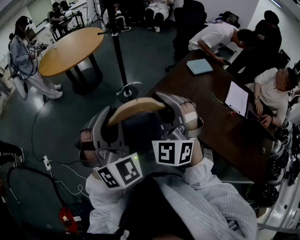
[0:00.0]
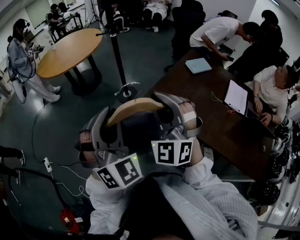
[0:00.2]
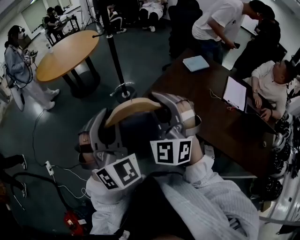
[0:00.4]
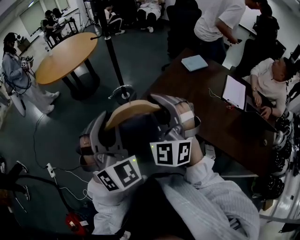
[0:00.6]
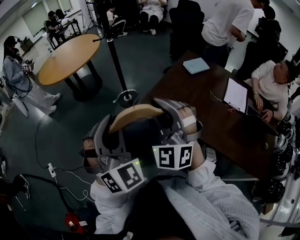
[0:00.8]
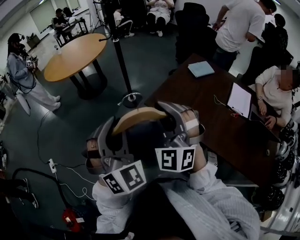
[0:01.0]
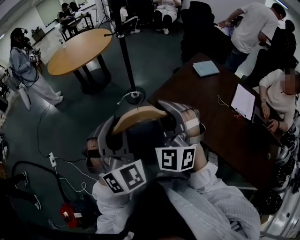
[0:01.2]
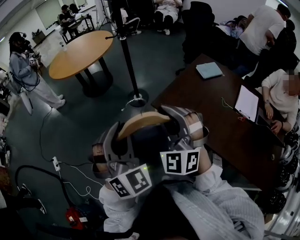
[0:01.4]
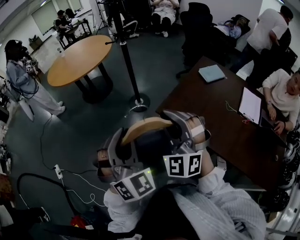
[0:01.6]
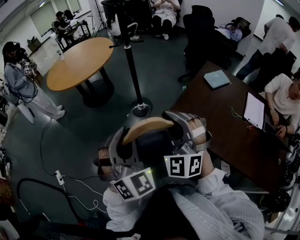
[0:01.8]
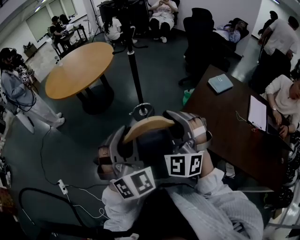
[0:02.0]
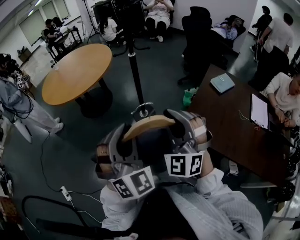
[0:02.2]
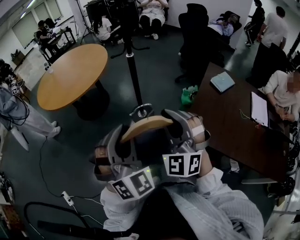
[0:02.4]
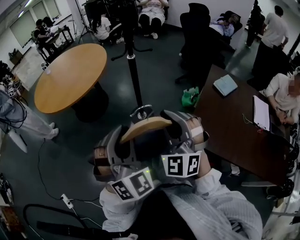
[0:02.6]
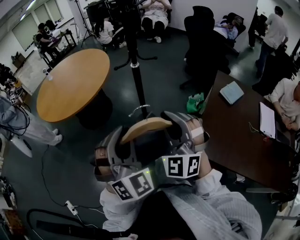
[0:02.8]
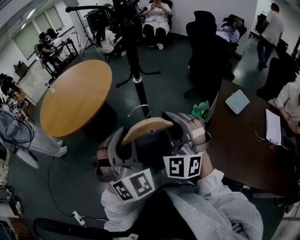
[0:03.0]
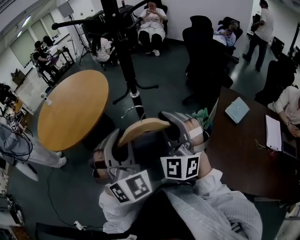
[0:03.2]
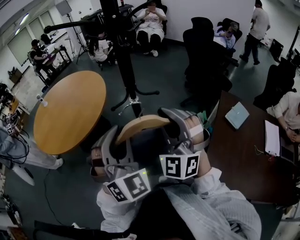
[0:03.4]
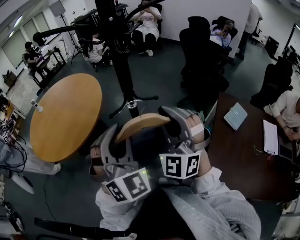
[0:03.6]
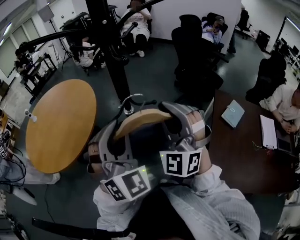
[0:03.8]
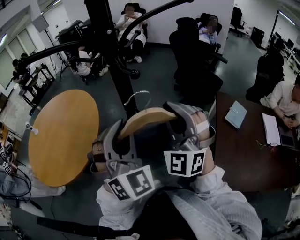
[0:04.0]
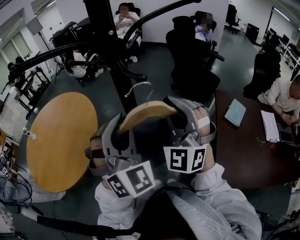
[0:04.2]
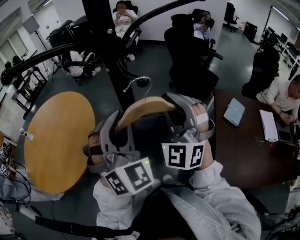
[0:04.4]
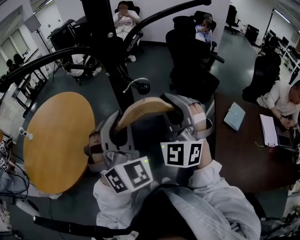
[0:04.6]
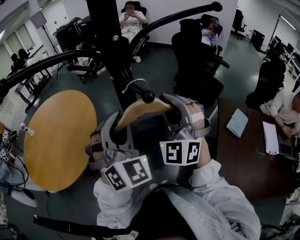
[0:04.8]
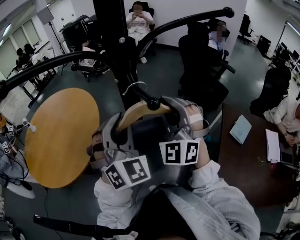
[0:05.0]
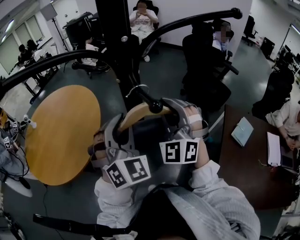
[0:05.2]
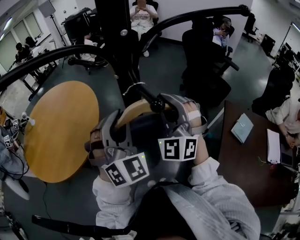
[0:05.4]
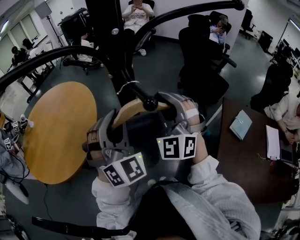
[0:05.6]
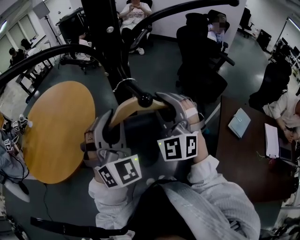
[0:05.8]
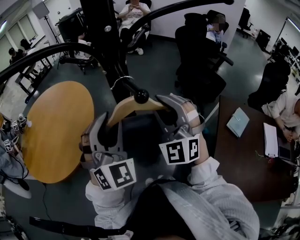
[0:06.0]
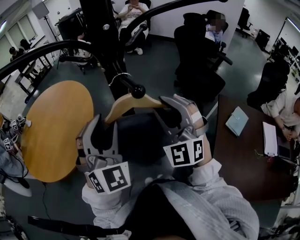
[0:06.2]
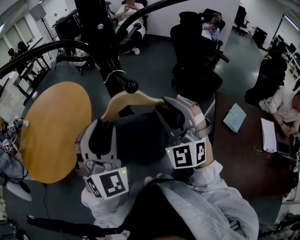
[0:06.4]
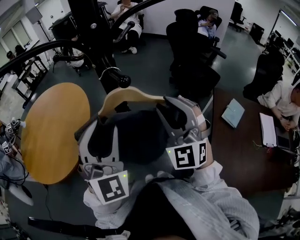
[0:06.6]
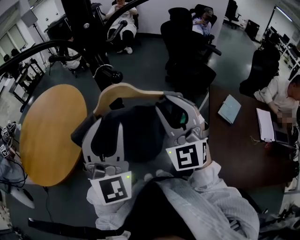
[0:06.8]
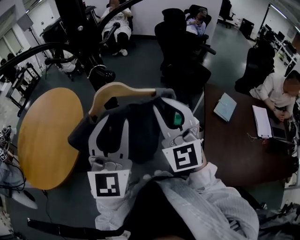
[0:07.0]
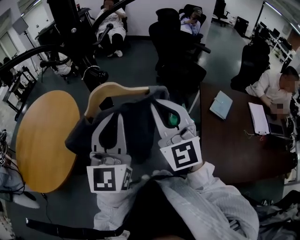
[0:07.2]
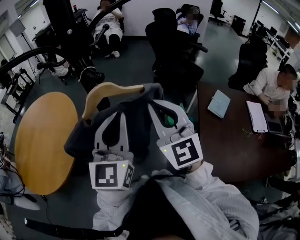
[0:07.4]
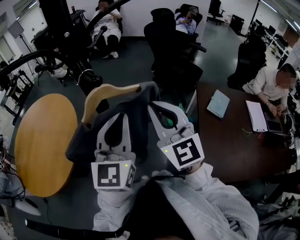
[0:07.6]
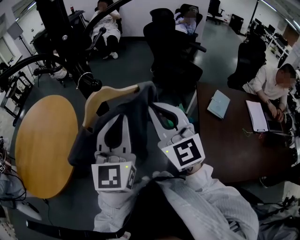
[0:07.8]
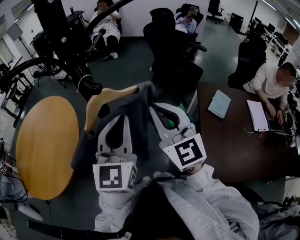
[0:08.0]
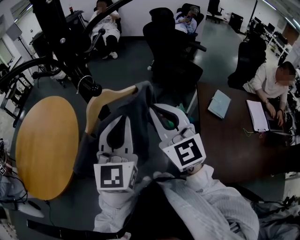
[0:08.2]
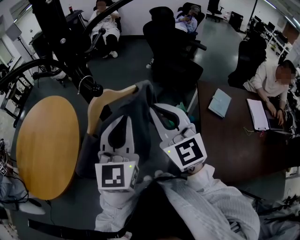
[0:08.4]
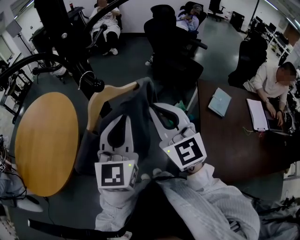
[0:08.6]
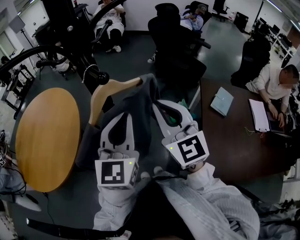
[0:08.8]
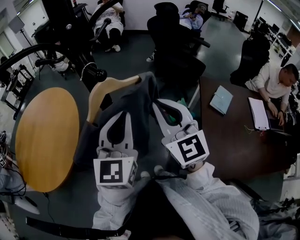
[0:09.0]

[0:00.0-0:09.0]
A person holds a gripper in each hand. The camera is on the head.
0.0 to 1.6 s: The right gripper ends up roughly 5 cm from where it was, while the left gripper shifts by approximately 5 cm.
1.6 to 3.0 s: The pair of grippers is taken forward, roughly 50 cm.
3.0 to 4.4 s: Both grippers travel together forward, roughly 30 cm.
4.4 to 6.0 s: Both grippers travel together forward, some 5 cm.
6.0 to 7.6 s: The left gripper travels to the right and backward by some 10 cm, rolls counterclockwise, seen from behind, by approximately 50 degrees, and closes up. The right gripper is displaced backward and to the right by about 10 cm, and changes its angle by roughly 40 degrees.
7.6 to 9.0 s: There are only small adjustments of the grippers.

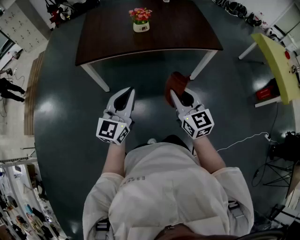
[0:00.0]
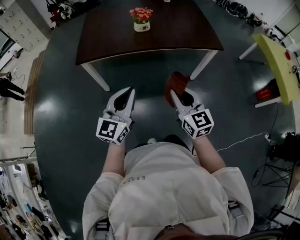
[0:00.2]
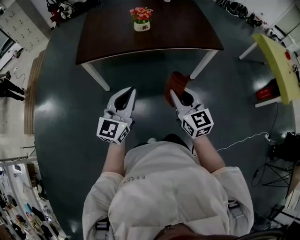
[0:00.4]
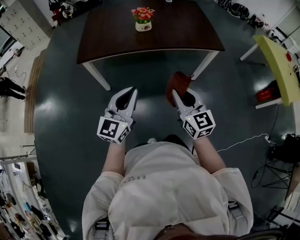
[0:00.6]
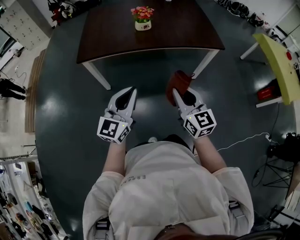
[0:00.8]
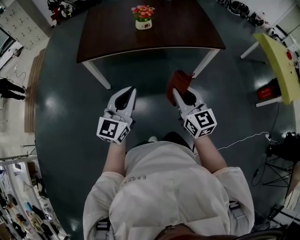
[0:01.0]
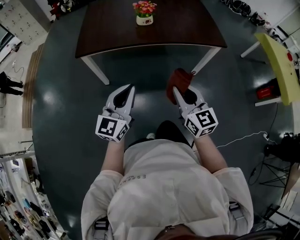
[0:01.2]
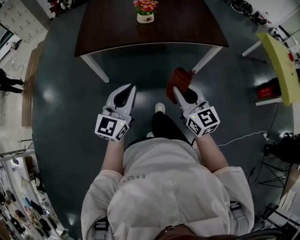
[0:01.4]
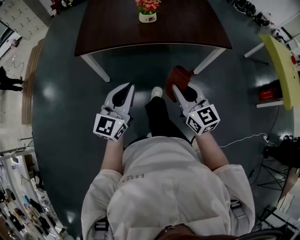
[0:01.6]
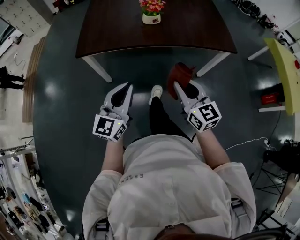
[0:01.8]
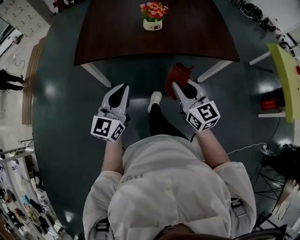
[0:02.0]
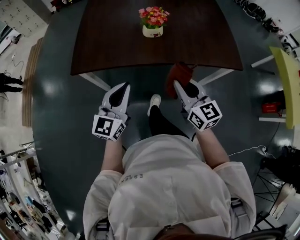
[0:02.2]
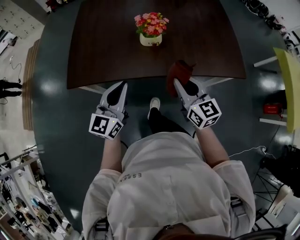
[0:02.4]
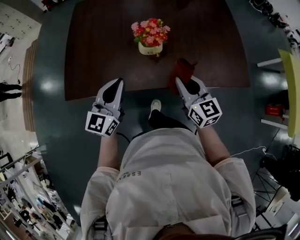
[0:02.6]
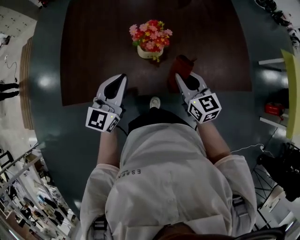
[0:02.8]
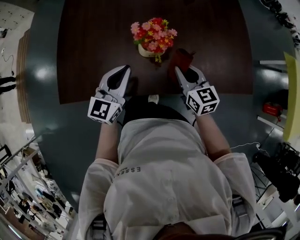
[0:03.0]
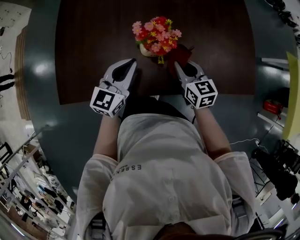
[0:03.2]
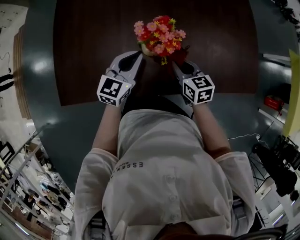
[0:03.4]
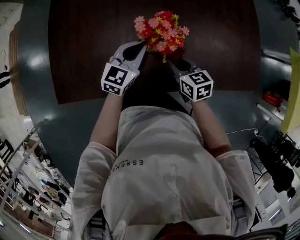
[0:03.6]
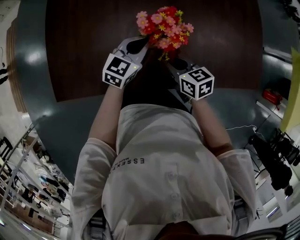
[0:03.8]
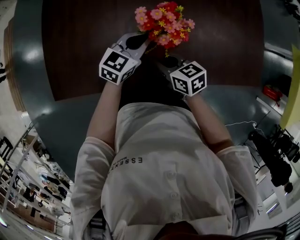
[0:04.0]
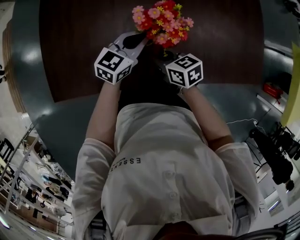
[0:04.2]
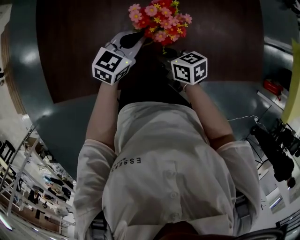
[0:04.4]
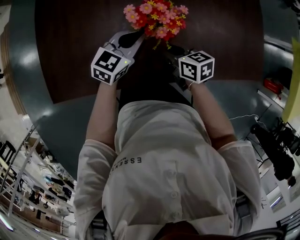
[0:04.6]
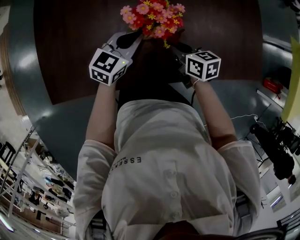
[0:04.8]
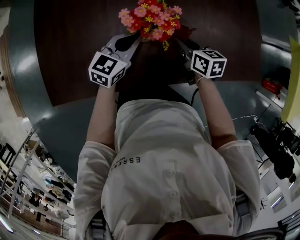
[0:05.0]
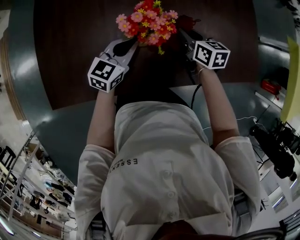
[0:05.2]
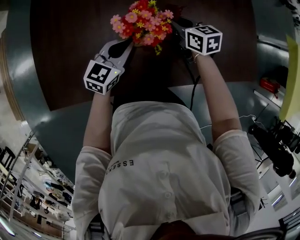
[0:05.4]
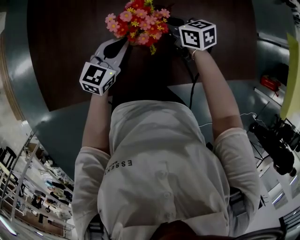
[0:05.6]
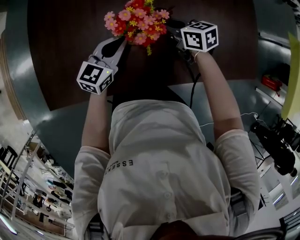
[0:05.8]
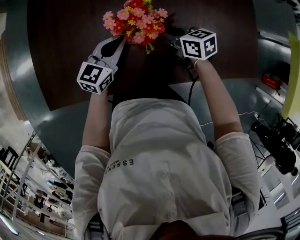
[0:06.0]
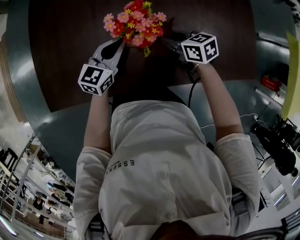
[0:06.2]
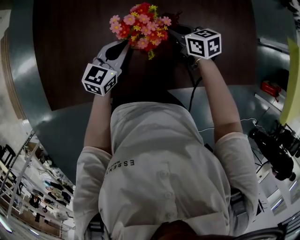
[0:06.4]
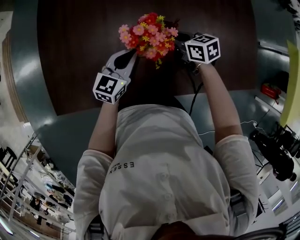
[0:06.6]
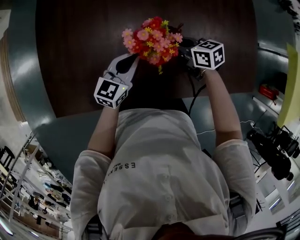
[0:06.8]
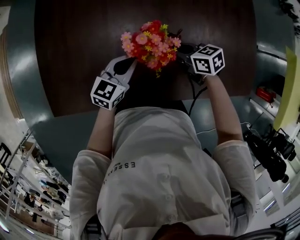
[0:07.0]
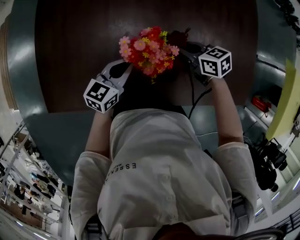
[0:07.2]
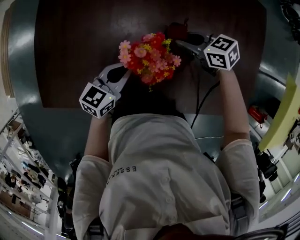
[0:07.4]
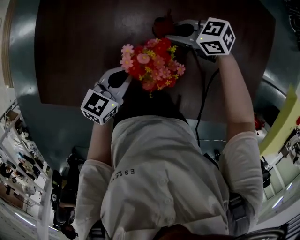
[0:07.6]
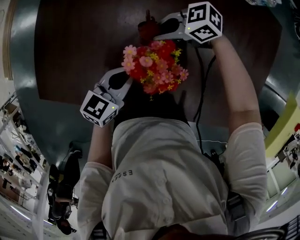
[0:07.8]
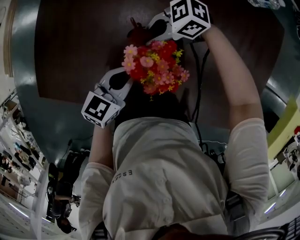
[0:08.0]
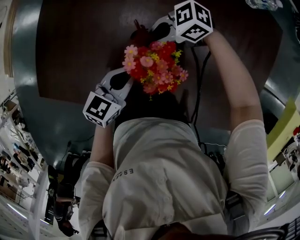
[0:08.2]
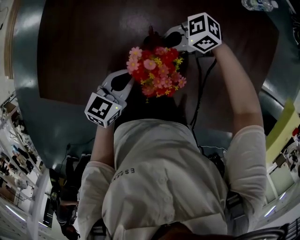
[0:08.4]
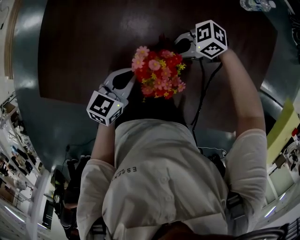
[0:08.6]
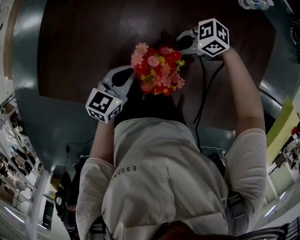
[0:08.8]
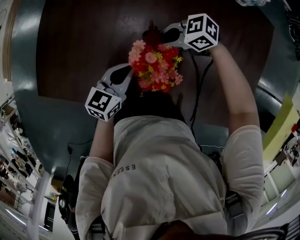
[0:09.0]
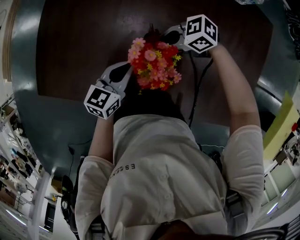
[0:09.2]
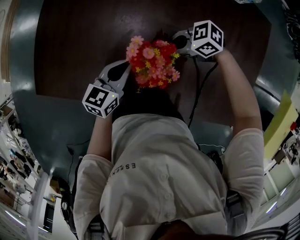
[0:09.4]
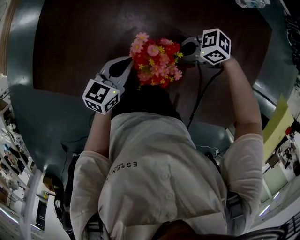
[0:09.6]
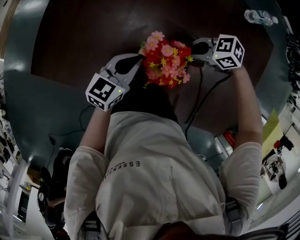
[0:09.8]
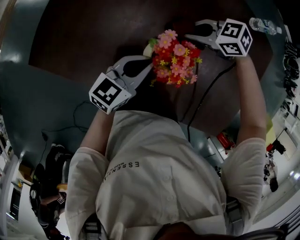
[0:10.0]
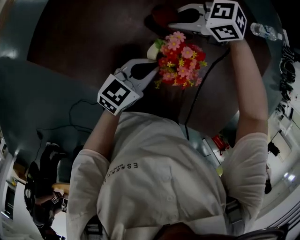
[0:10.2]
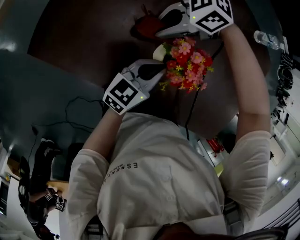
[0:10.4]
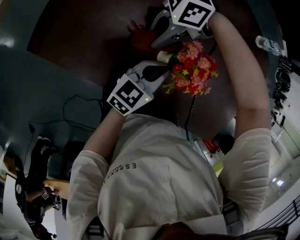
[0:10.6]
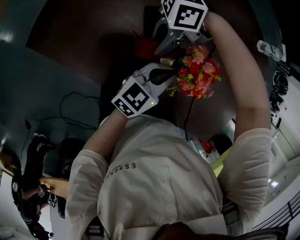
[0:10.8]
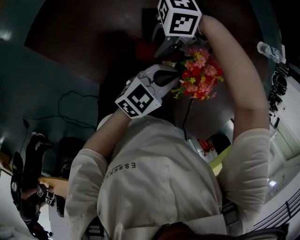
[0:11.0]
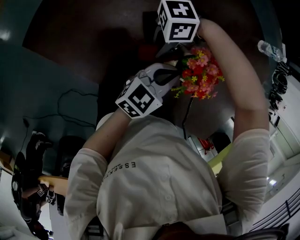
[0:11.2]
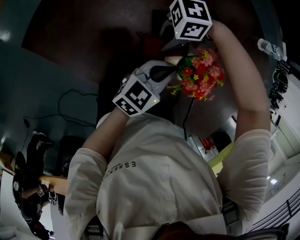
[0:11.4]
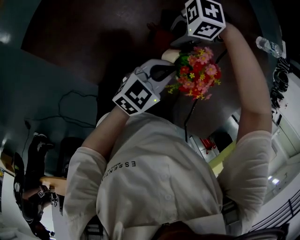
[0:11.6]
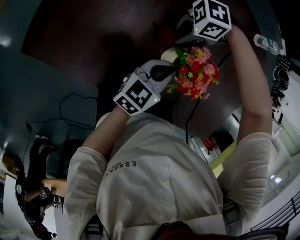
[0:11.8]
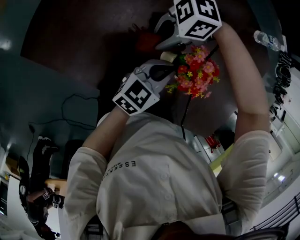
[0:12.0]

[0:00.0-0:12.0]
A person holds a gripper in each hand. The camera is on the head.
0.0 to 1.6 s: The grippers move only a little.
1.6 to 3.0 s: The pair of grippers is taken forward, some 50 cm.
3.0 to 4.4 s: The left gripper is displaced downward, forward and to the right by some 15 cm, and rotates some 20 degrees. Meanwhile the right gripper shifts approximately 15 cm to the left and downward, and changes its angle by approximately 30 degrees.
4.4 to 6.0 s: The right gripper travels to the right and forward by approximately 10 cm.
6.0 to 7.6 s: The right gripper shifts by approximately 10 cm, and turns by about 50 degrees.
7.6 to 9.0 s: The right gripper ends up some 5 cm from where it was, and changes its angle by about 20 degrees.
9.0 to 10.4 s: The right gripper moves roughly 15 cm, and swivels about 30 degrees.

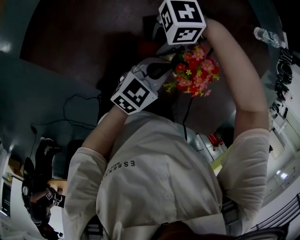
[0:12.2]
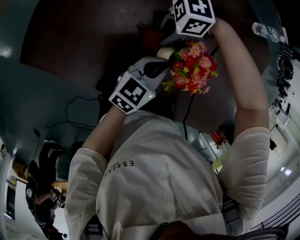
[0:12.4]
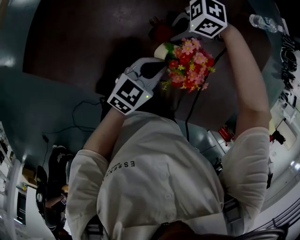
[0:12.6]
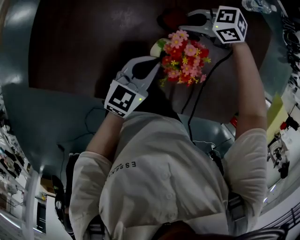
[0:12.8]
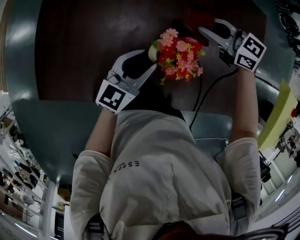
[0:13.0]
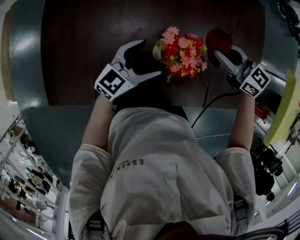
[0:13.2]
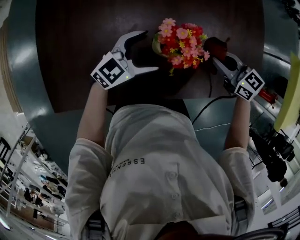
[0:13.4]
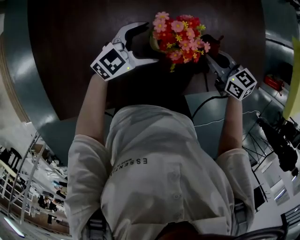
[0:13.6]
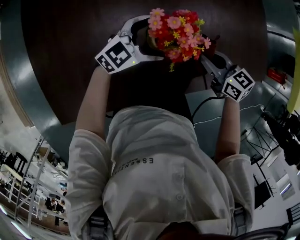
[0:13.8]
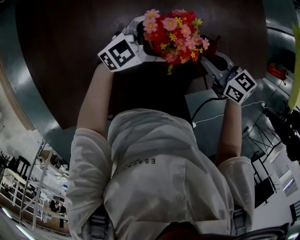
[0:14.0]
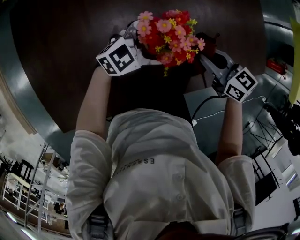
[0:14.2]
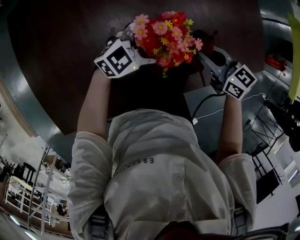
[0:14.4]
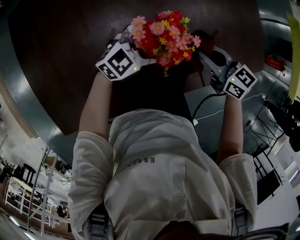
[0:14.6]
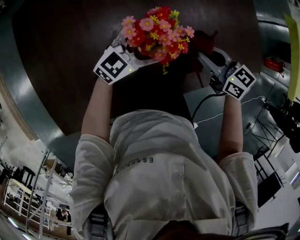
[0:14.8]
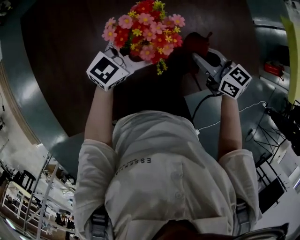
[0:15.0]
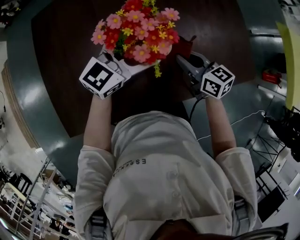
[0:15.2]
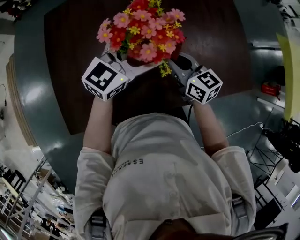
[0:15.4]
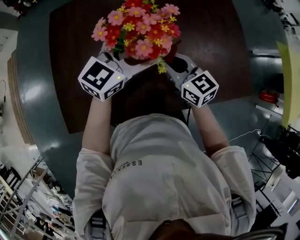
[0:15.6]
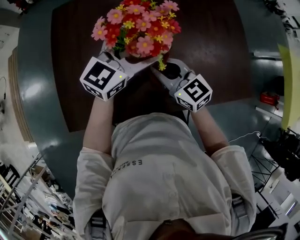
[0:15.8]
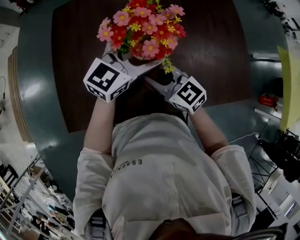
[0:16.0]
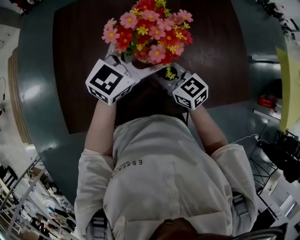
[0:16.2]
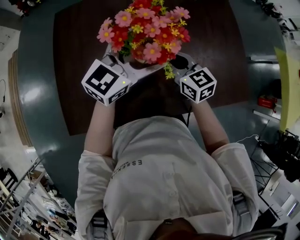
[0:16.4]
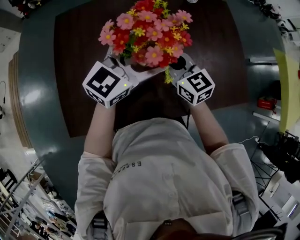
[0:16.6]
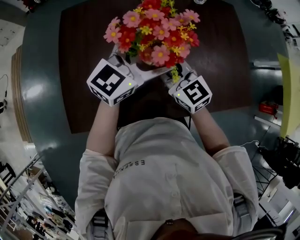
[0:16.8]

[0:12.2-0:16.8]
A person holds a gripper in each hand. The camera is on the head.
12.2 to 13.8 s: The right gripper moves roughly 10 cm upward and comes back, and changes its angle by about 130 degrees; the left gripper swivels approximately 60 degrees, and opens its fingers.
13.8 to 15.2 s: The left gripper goes some 20 cm upward, and swivels about 20 degrees, while the right gripper goes roughly 10 cm upward.
15.2 to 16.8 s: The left gripper travels upward by about 5 cm. The right gripper moves left and right over roughly 15 cm, changing direction 2 times, and rotates approximately 30 degrees.
